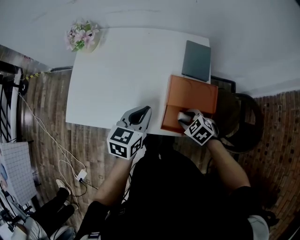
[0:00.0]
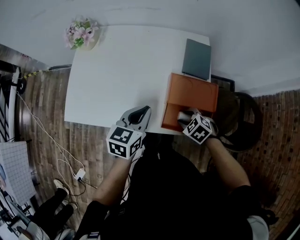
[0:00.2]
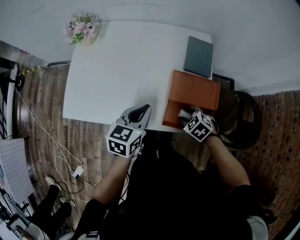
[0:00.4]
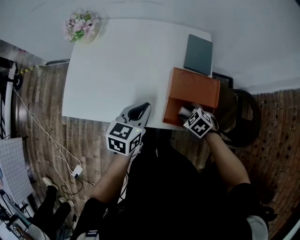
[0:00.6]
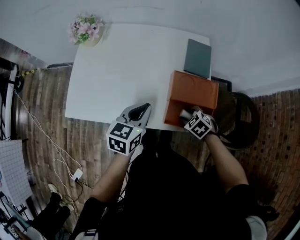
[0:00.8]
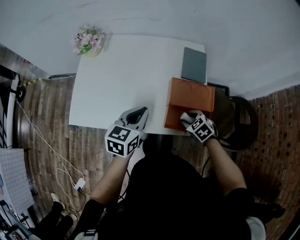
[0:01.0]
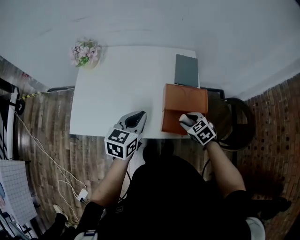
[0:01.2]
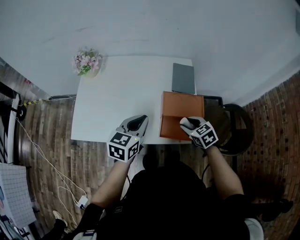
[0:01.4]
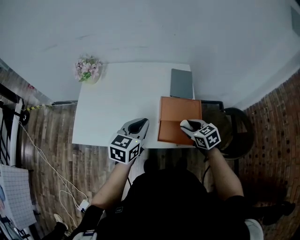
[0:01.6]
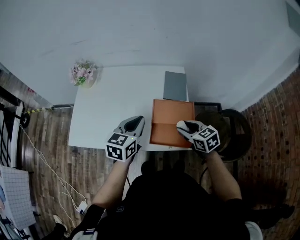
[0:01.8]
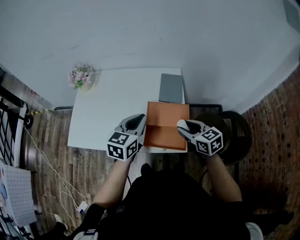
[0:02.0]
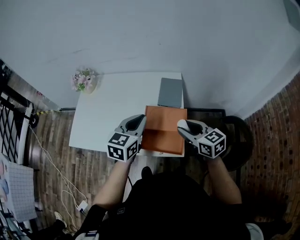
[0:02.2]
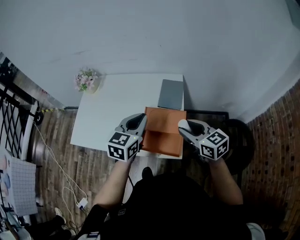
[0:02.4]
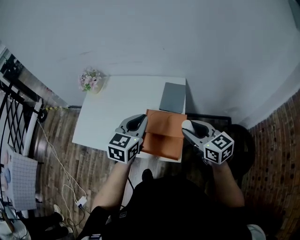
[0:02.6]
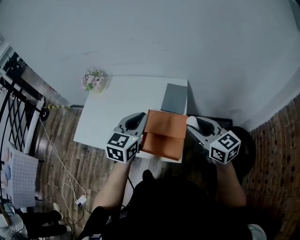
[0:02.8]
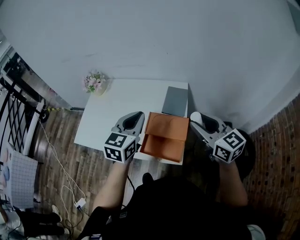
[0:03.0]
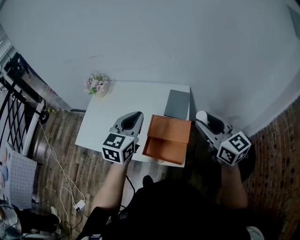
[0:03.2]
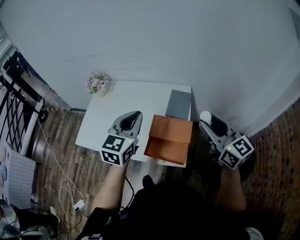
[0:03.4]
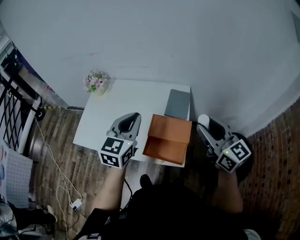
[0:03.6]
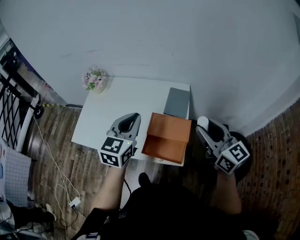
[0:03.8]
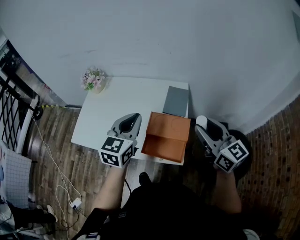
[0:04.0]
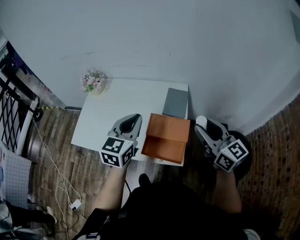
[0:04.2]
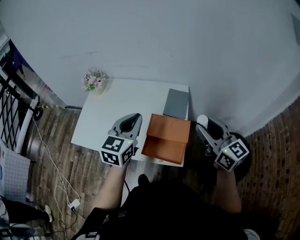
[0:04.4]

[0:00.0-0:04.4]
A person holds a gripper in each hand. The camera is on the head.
0:00.0 to 0:01.4: Both grippers move upward, some 5 cm. The right gripper changes its angle by about 30 degrees.
0:01.4 to 0:03.0: The right gripper goes roughly 30 cm upward and to the right, and tips its fingers upward by some 40 degrees, while the left gripper moves to the right and upward, some 20 cm, and turns by some 20 degrees.
0:03.0 to 0:04.4: The grippers stay close to where they were, moving slightly.

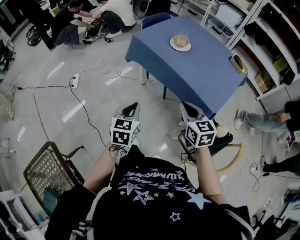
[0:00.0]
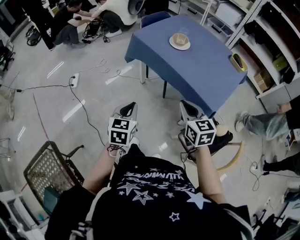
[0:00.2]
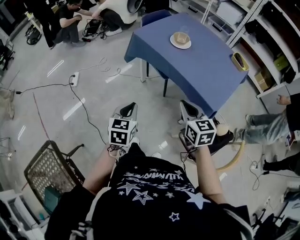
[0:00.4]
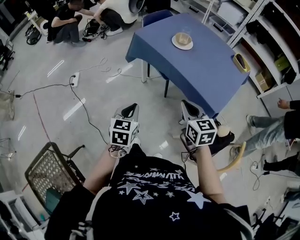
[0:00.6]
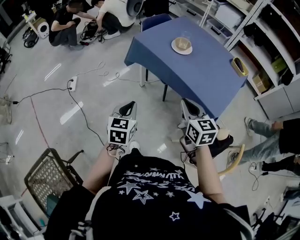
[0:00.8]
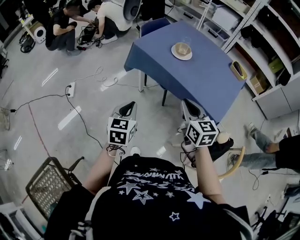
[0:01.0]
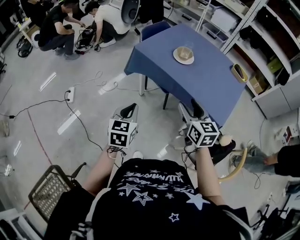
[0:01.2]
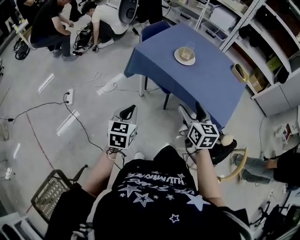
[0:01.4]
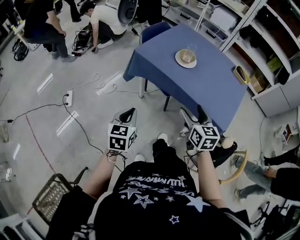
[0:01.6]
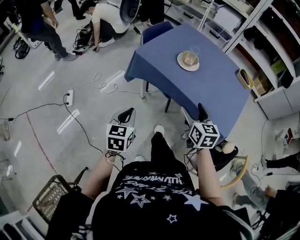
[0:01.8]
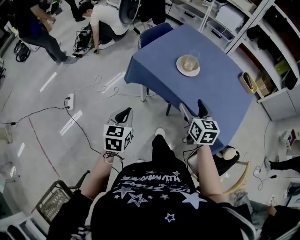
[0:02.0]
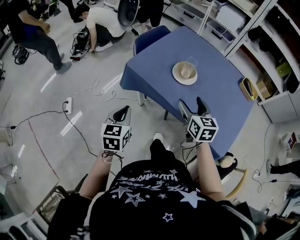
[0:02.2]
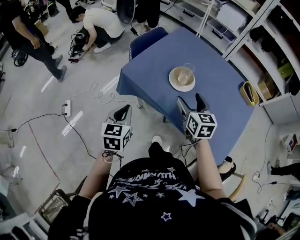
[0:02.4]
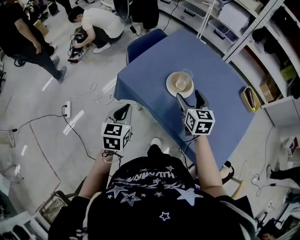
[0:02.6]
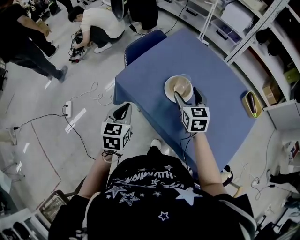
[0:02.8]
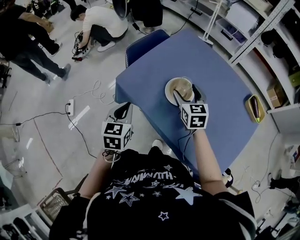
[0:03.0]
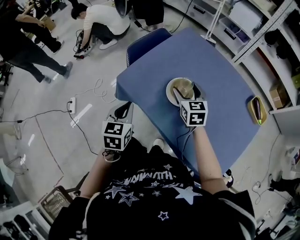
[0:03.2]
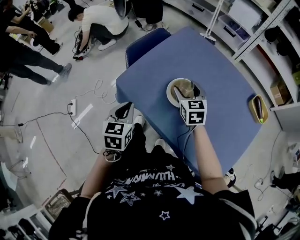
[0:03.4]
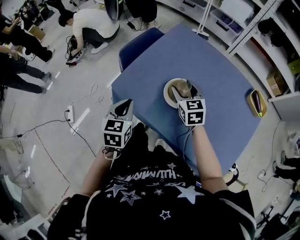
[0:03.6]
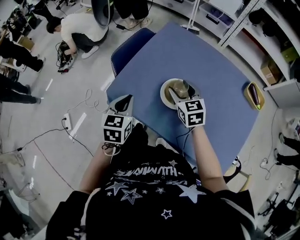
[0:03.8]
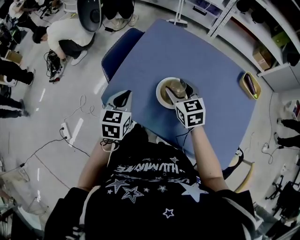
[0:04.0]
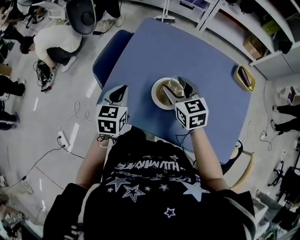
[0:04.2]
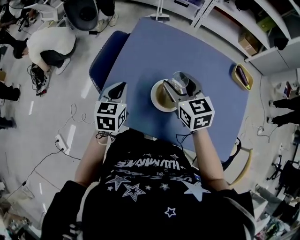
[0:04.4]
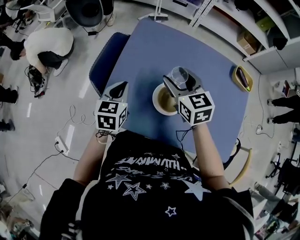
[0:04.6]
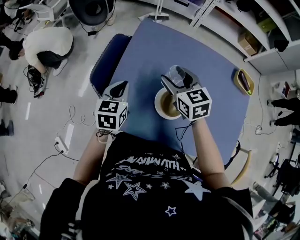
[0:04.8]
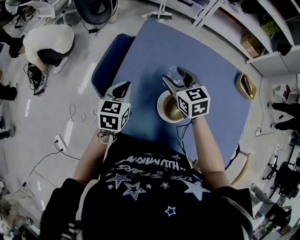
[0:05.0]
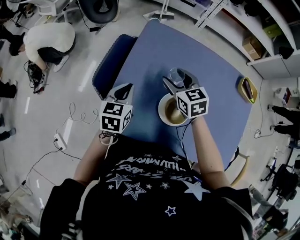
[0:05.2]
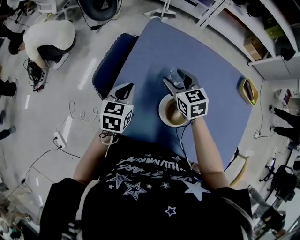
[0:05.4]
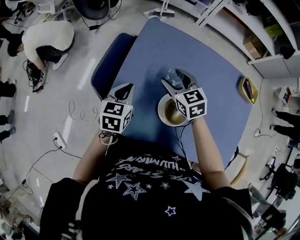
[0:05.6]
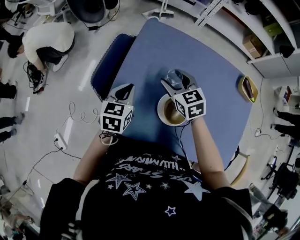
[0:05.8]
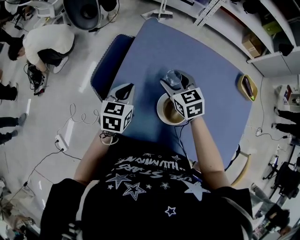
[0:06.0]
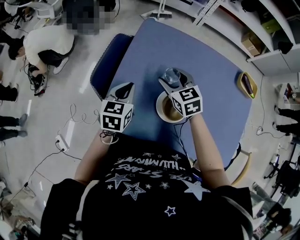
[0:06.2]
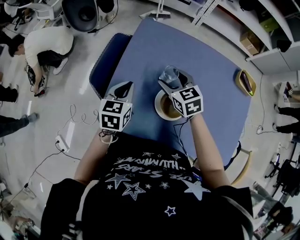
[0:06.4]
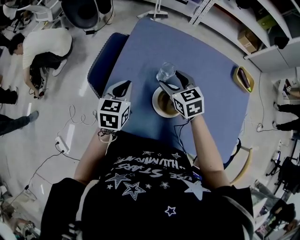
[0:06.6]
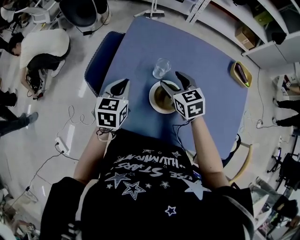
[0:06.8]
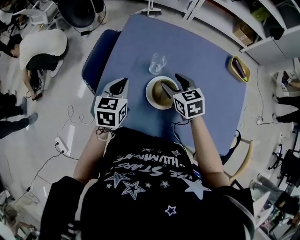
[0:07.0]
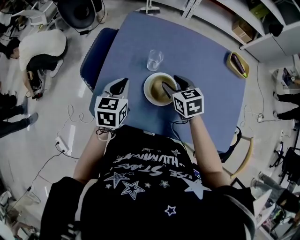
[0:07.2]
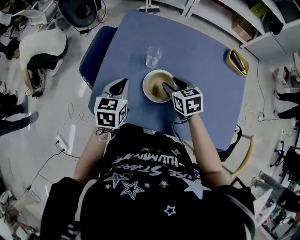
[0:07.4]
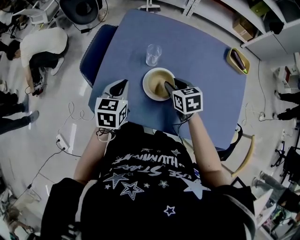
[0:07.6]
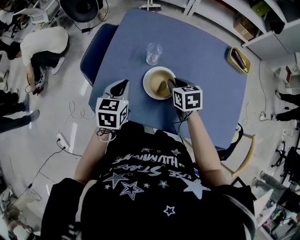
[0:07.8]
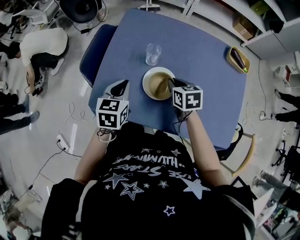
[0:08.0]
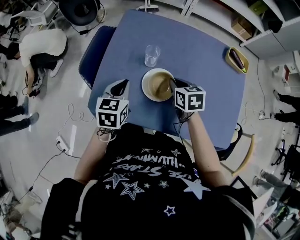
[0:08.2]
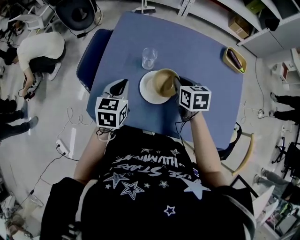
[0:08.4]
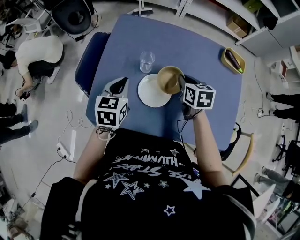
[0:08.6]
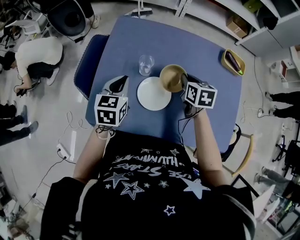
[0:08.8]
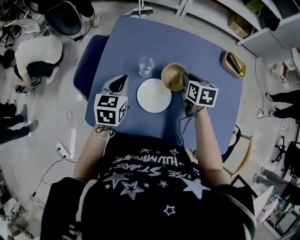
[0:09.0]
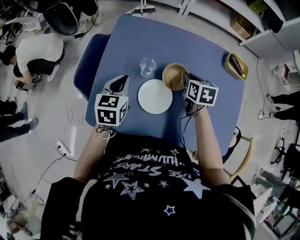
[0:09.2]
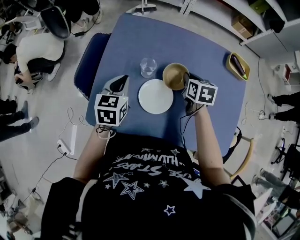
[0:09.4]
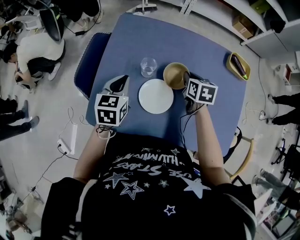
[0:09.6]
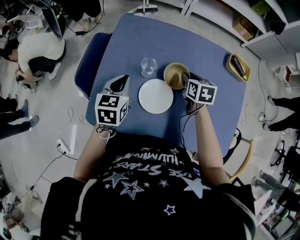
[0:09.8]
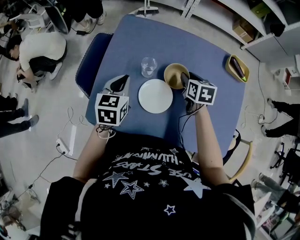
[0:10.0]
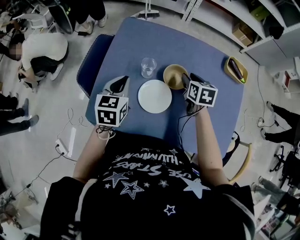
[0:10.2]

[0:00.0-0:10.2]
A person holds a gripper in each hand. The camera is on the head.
0:00.0 to 0:01.4: Both grippers move forward and to the left, some 15 cm. The right gripper opens up.
0:01.4 to 0:03.0: Both grippers move forward, about 35 cm.
0:03.0 to 0:04.4: The right gripper goes roughly 10 cm forward and upward; the left gripper shifts about 20 cm forward, and turns by some 30 degrees.
0:04.4 to 0:05.8: The left gripper shifts approximately 5 cm forward; the right gripper travels forward and downward by roughly 10 cm.
0:05.8 to 0:07.2: The left gripper heads backward, covering about 5 cm, while the right gripper travels backward and to the right by roughly 15 cm.
0:07.2 to 0:08.8: The right gripper shifts some 10 cm to the right, rotates approximately 20 degrees, and closes; the left gripper shifts by some 5 cm.
0:08.8 to 0:10.2: The right gripper opens.

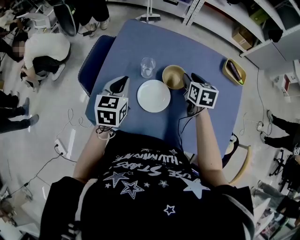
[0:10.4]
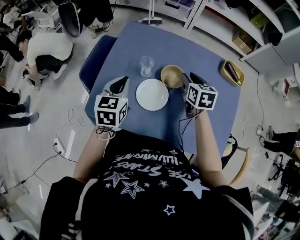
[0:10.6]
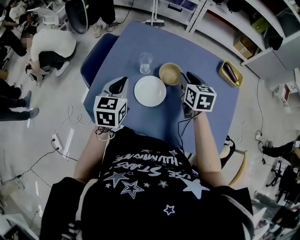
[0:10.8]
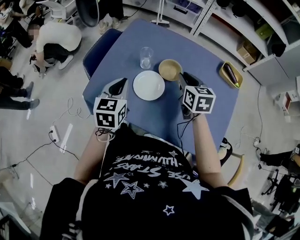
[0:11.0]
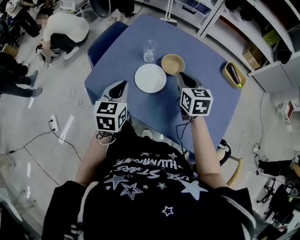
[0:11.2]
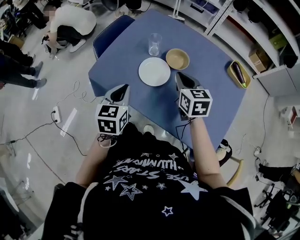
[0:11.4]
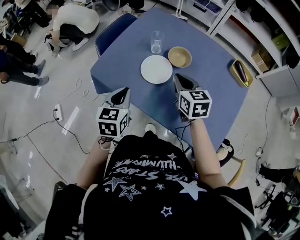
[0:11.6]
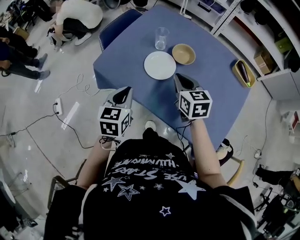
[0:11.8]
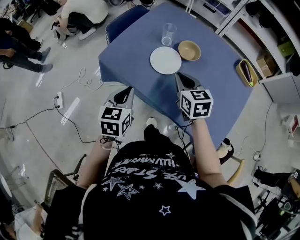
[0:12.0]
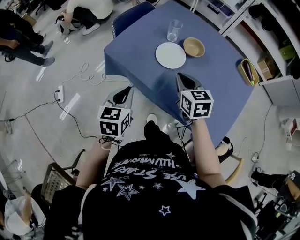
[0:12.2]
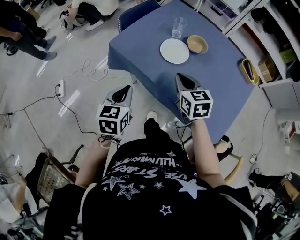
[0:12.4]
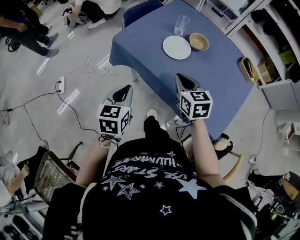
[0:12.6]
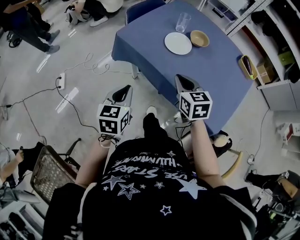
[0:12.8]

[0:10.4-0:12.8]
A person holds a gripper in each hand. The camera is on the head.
0:10.4 to 0:11.6: The right gripper travels backward and to the left by about 15 cm, swivels about 30 degrees, and closes up; the left gripper goes approximately 20 cm backward.
0:11.6 to 0:12.8: Both grippers move backward and to the left, some 20 cm.

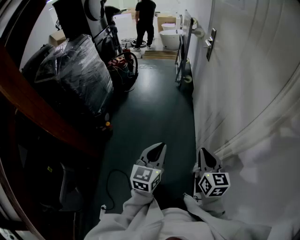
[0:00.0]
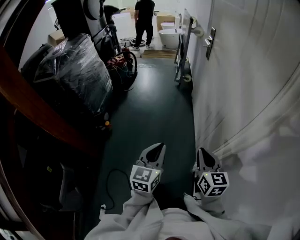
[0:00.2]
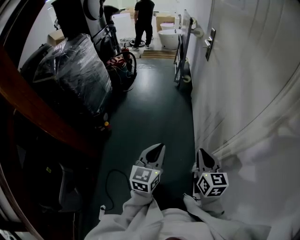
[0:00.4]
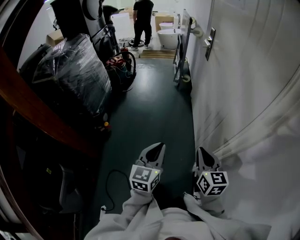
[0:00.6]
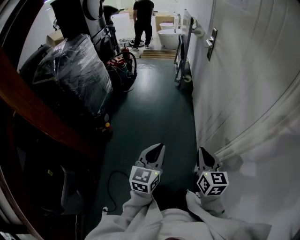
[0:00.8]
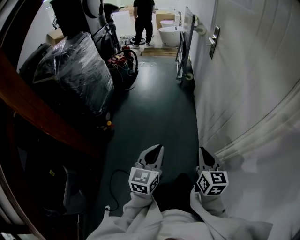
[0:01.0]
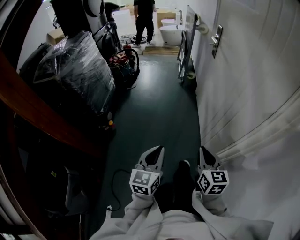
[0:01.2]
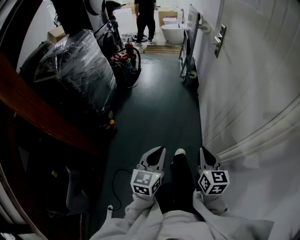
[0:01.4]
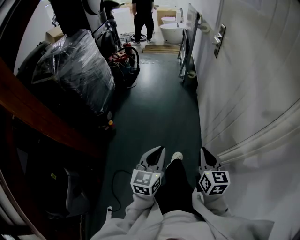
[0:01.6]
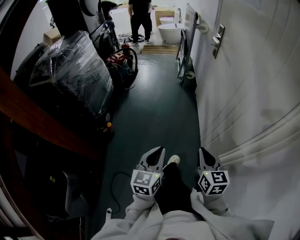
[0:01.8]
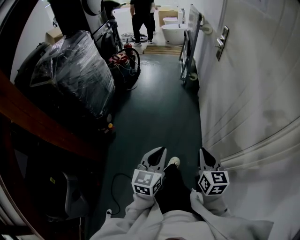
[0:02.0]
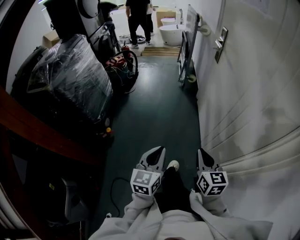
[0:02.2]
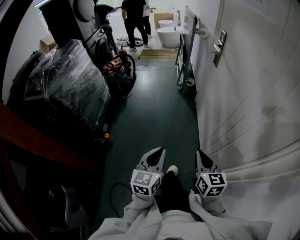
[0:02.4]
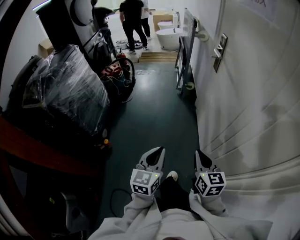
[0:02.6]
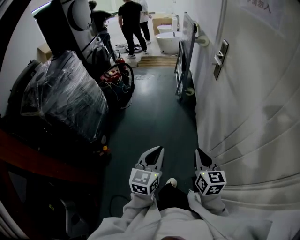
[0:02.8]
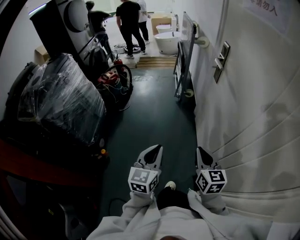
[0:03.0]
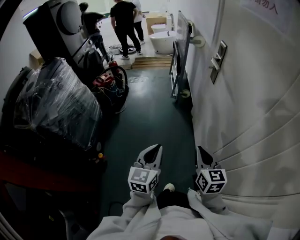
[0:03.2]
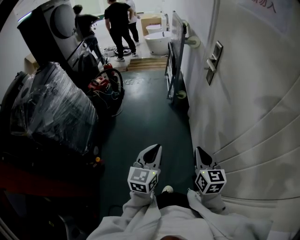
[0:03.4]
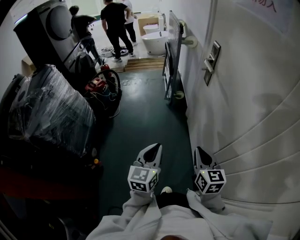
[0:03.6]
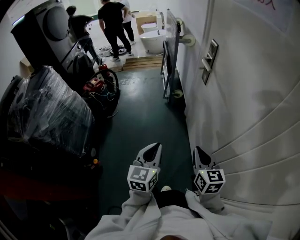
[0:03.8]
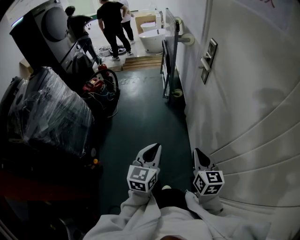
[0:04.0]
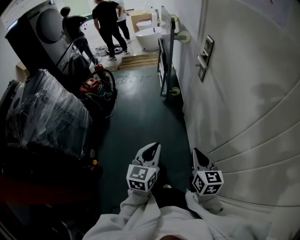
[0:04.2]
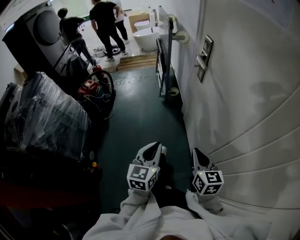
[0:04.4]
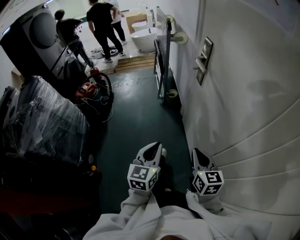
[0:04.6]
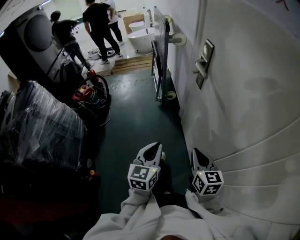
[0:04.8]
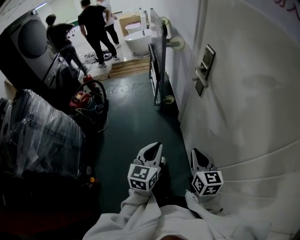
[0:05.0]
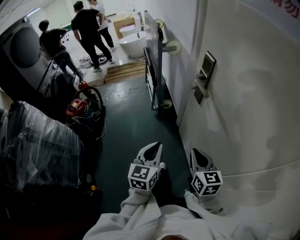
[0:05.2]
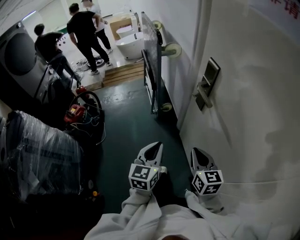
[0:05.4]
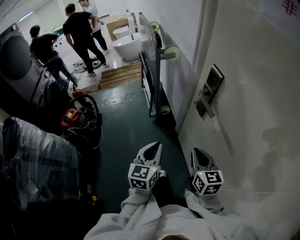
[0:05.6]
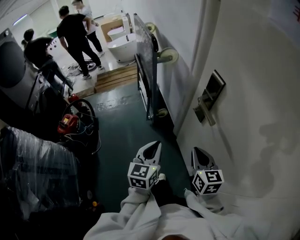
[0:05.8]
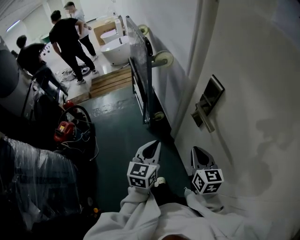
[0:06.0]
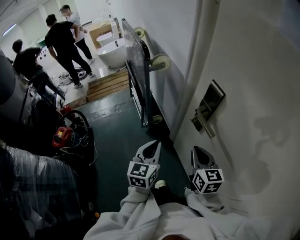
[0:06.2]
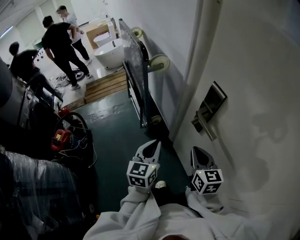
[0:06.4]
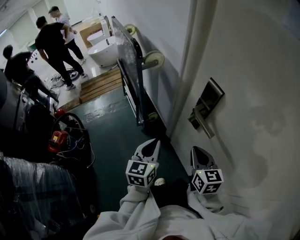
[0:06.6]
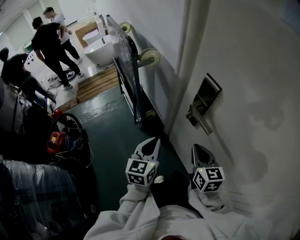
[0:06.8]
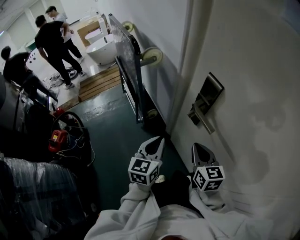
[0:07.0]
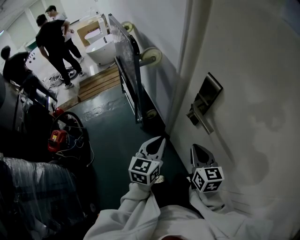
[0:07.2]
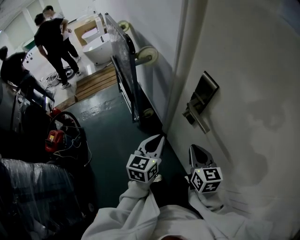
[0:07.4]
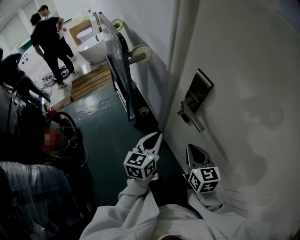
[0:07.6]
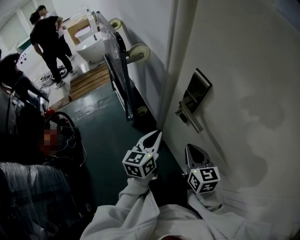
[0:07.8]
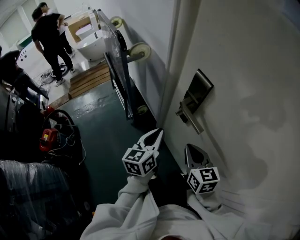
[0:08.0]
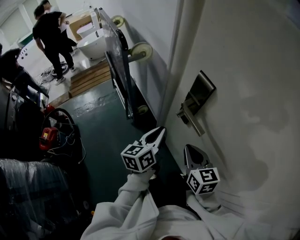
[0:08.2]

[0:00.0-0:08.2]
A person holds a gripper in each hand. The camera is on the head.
0:00.0 to 0:01.6: Both grippers travel together to the left, about 5 cm.
0:01.6 to 0:03.2: The grippers both shift forward by about 35 cm.
0:03.2 to 0:05.0: Both grippers travel together forward, about 20 cm.
0:05.0 to 0:06.6: The grippers both shift forward by about 25 cm.
0:06.6 to 0:08.2: The left gripper shifts roughly 5 cm to the right, and turns by approximately 30 degrees.
